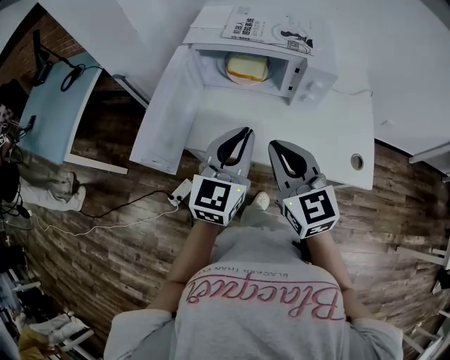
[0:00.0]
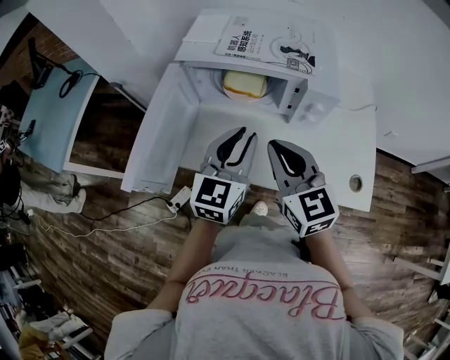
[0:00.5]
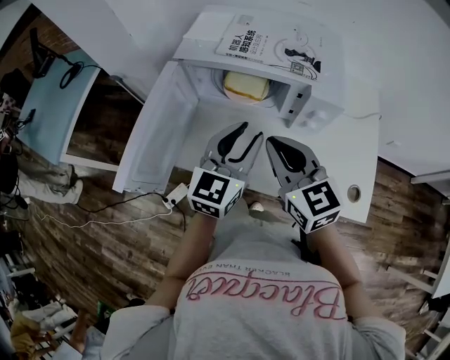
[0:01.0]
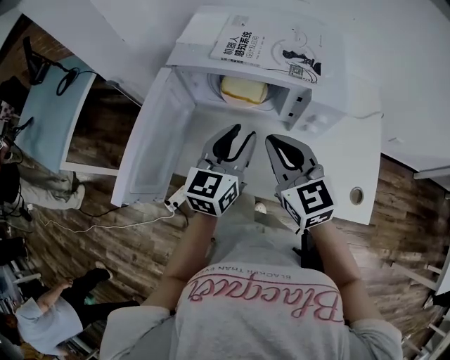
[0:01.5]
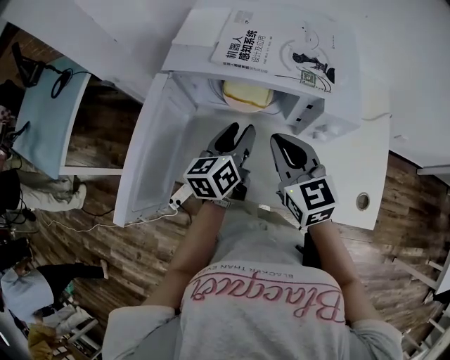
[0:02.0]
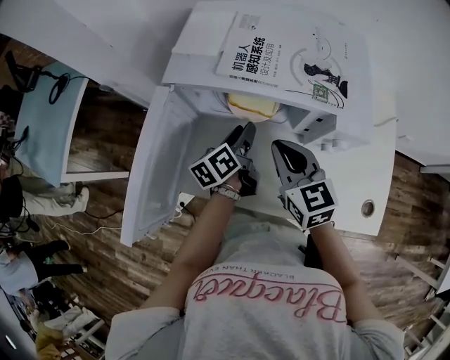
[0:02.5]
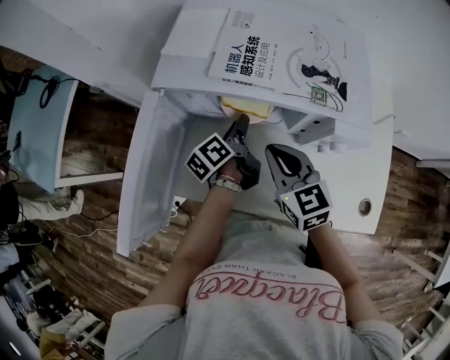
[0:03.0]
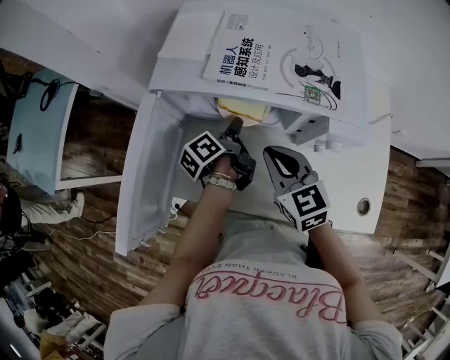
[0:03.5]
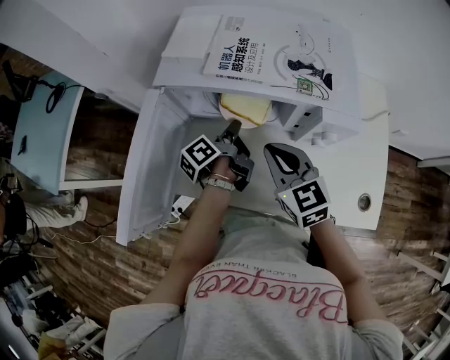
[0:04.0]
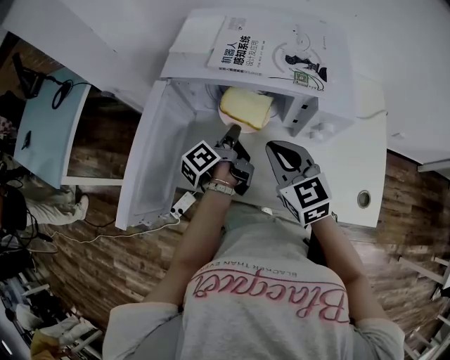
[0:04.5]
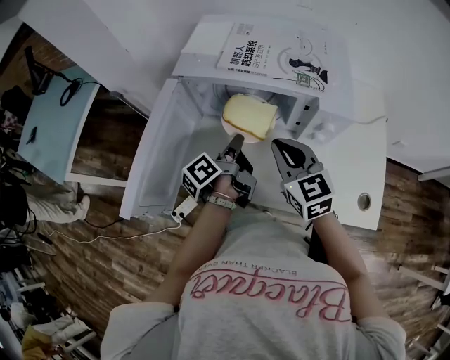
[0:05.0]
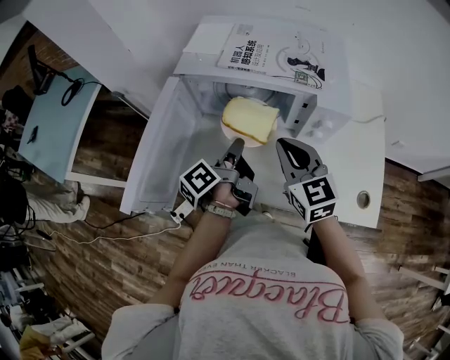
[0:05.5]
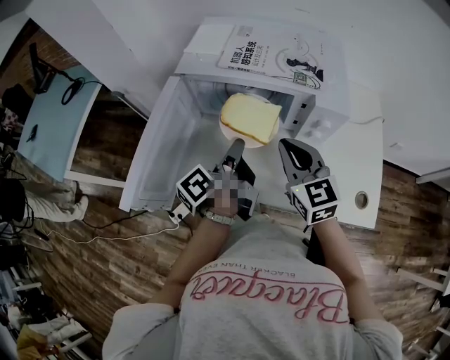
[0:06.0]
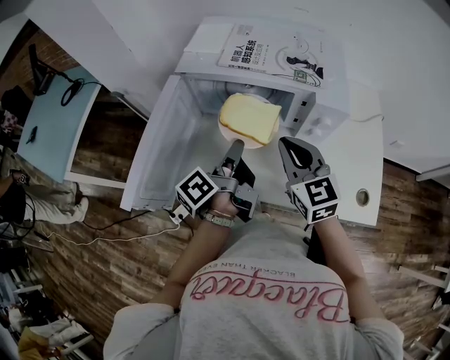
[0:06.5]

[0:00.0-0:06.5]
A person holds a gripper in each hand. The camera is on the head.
0:00.0 to 0:02.0: The right gripper heads forward, covering about 20 cm. Meanwhile the left gripper goes some 25 cm forward and downward, rotates roughly 40 degrees, and opens its fingers.
0:02.0 to 0:04.5: The left gripper moves downward, roughly 5 cm, twists about 50 degrees counterclockwise, seen from behind, and closes.
0:04.5 to 0:06.5: The left gripper travels upward and backward by approximately 15 cm.

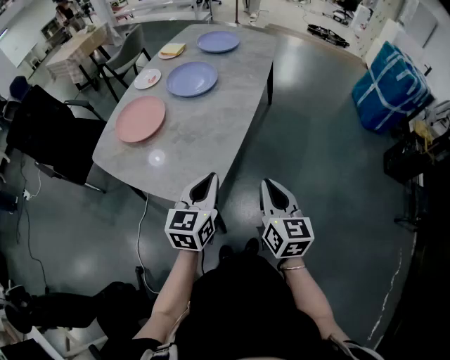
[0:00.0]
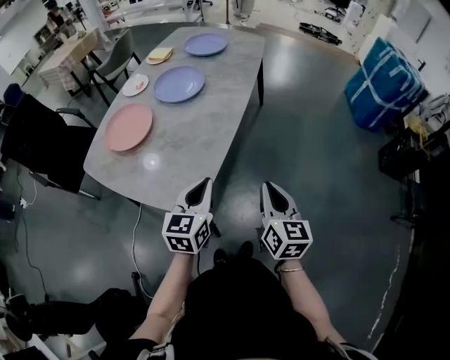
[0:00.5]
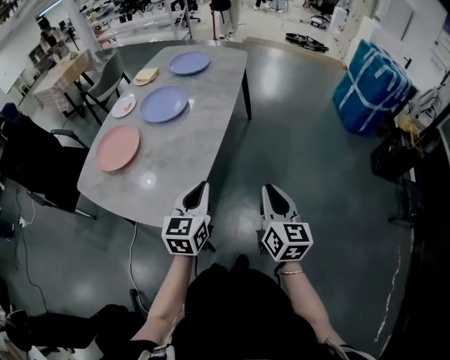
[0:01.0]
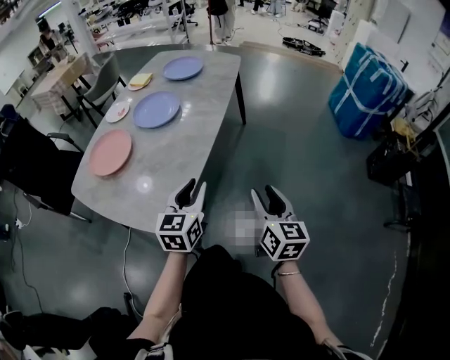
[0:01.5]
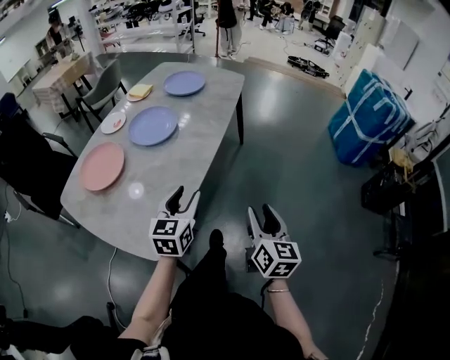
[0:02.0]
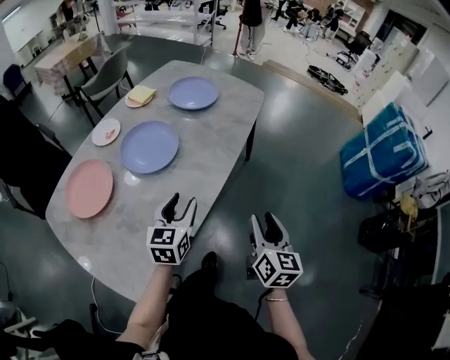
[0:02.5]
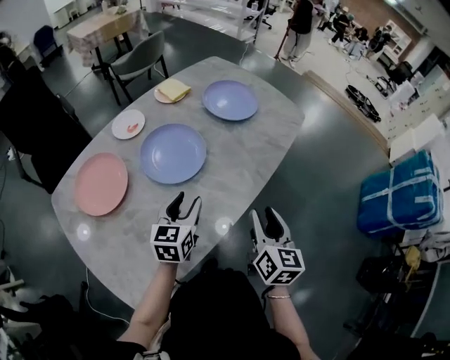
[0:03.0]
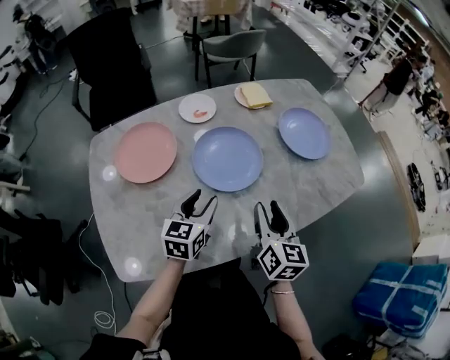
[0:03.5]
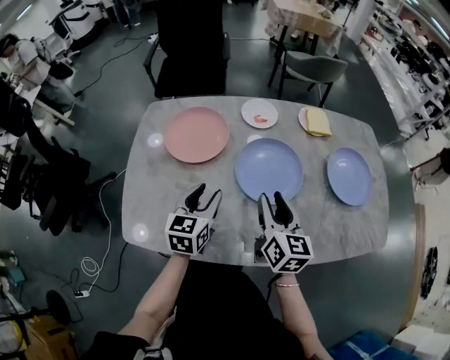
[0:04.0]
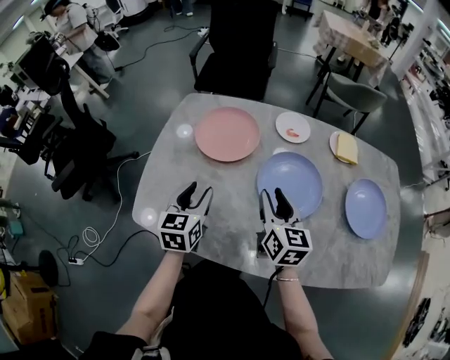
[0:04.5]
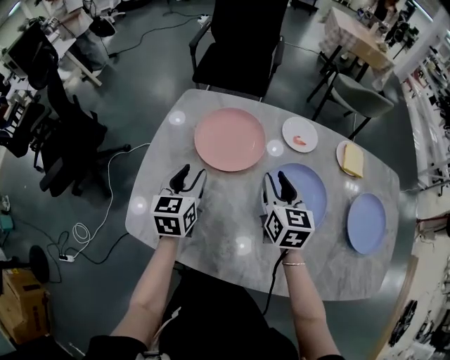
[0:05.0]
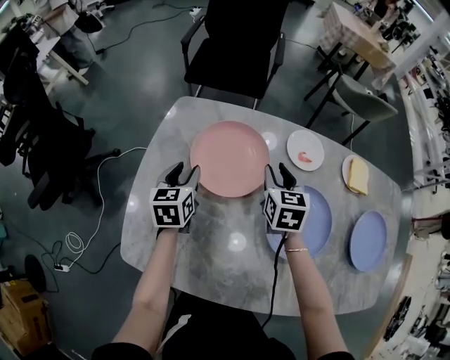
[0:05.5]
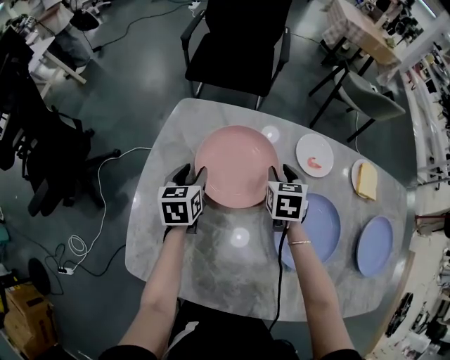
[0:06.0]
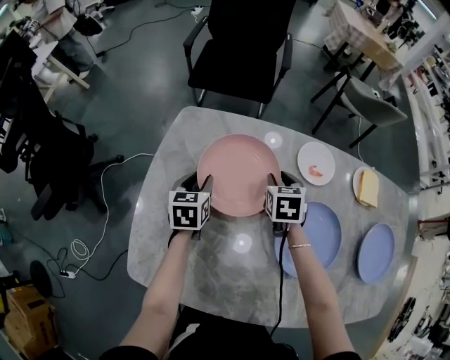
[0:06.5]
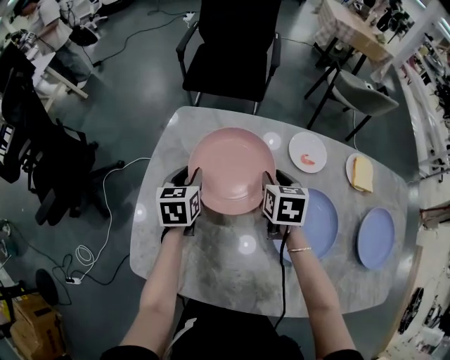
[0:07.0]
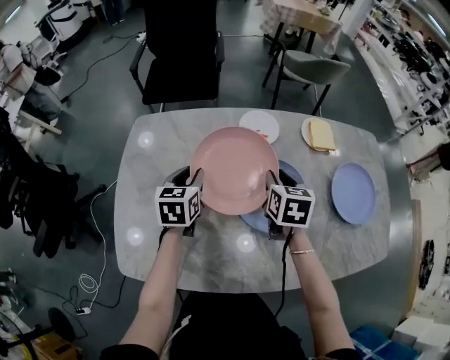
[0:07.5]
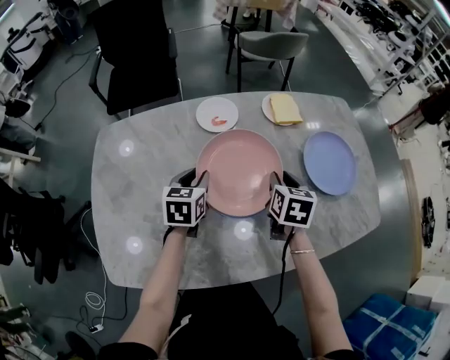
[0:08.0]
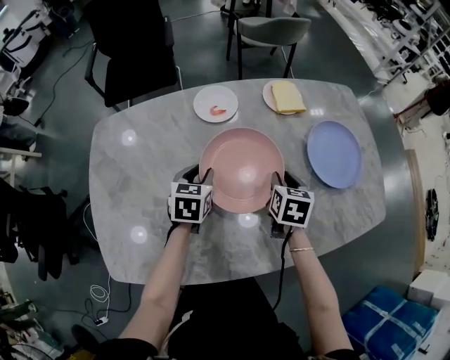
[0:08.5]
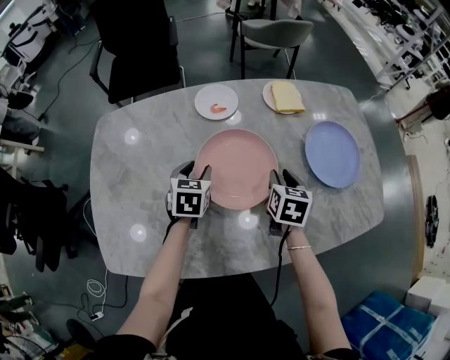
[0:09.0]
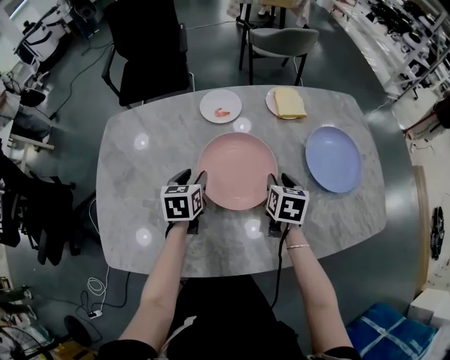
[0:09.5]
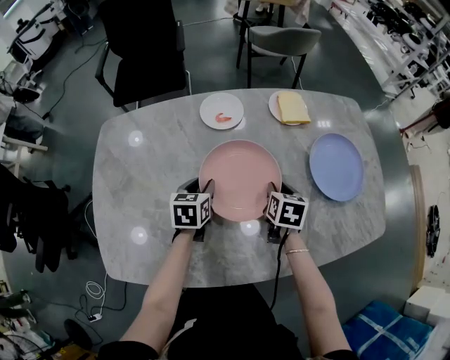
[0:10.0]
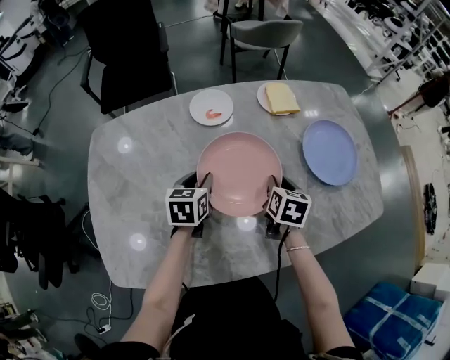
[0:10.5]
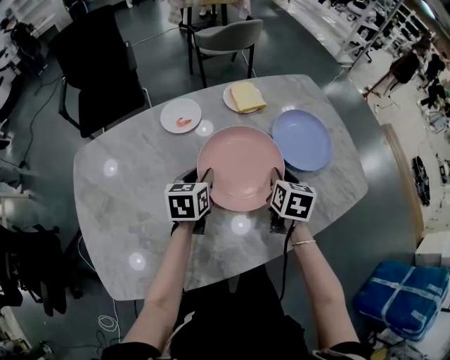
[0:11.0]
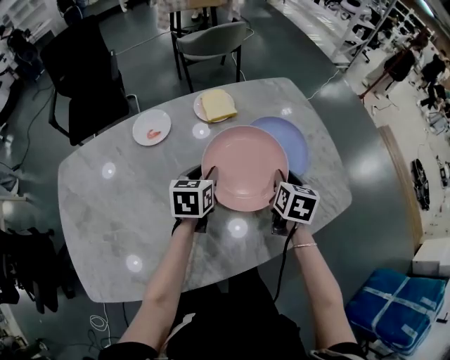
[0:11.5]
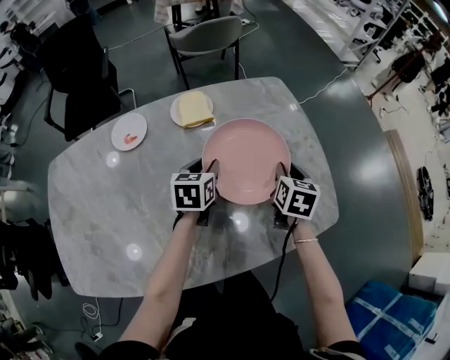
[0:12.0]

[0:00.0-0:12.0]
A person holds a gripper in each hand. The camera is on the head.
0:00.0 to 0:02.0: The right gripper is displaced to the right and forward by roughly 20 cm, and opens its fingers, while the left gripper travels forward and to the right by some 15 cm, and opens.
0:02.0 to 0:04.0: The right gripper shifts by approximately 50 cm, and rotates approximately 70 degrees; the left gripper moves roughly 30 cm, and rotates roughly 70 degrees.
0:04.0 to 0:06.0: The right gripper heads forward and downward, covering about 35 cm, and rotates about 40 degrees. Meanwhile the left gripper heads forward, to the left and downward, covering approximately 30 cm, and changes its angle by some 30 degrees.
0:06.0 to 0:08.0: The right gripper ends up roughly 30 cm from where it was, and swivels about 30 degrees; the left gripper changes place by approximately 30 cm, and rotates some 30 degrees.
0:08.0 to 0:10.0: The grippers both shift downward by some 5 cm.
0:10.0 to 0:12.0: The left gripper is displaced to the right and forward by approximately 35 cm. The right gripper heads to the right, covering some 30 cm.

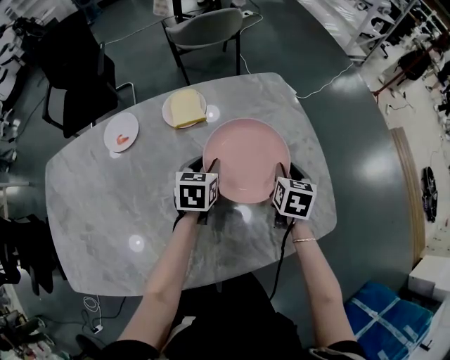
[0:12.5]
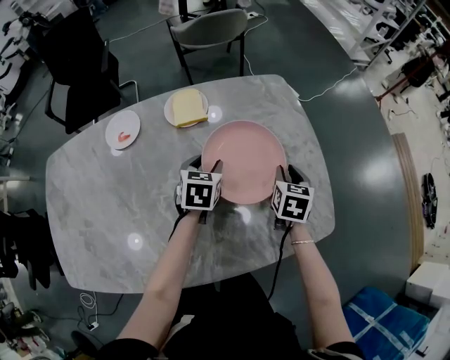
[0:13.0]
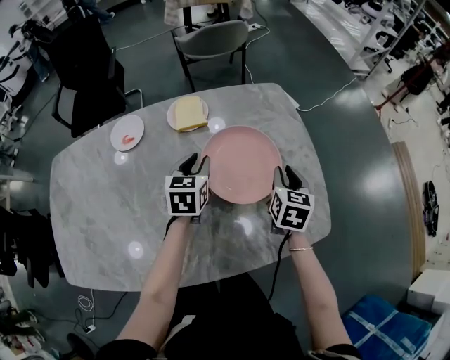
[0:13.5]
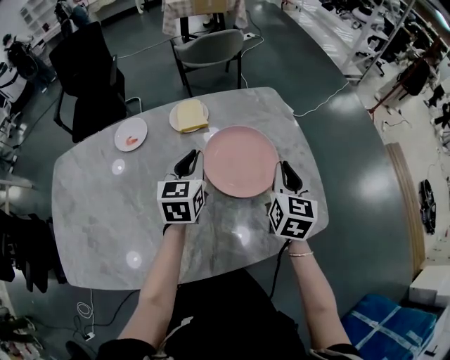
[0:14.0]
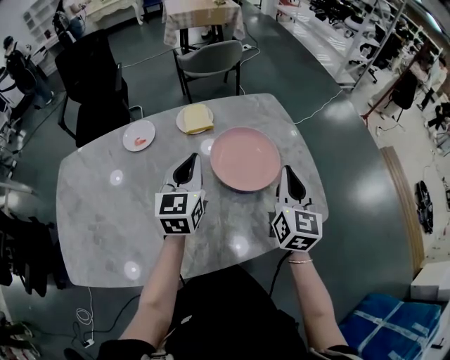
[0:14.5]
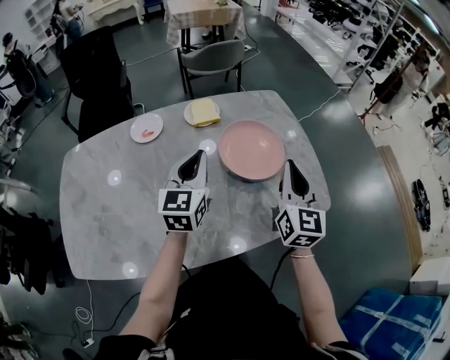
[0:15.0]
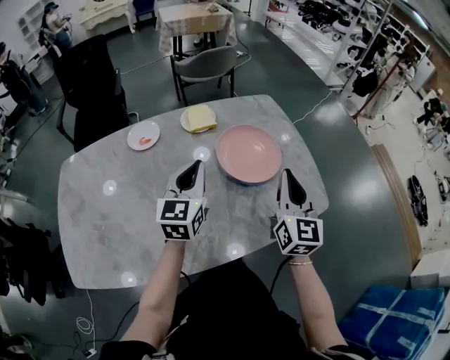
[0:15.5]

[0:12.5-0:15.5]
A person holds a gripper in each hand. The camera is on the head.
0:12.5 to 0:14.0: The grippers both shift upward by roughly 10 cm. The left gripper swivels some 20 degrees, and closes. The right gripper rotates approximately 20 degrees.
0:14.0 to 0:15.5: The grippers both shift backward and upward by about 15 cm. The right gripper changes its angle by about 20 degrees.

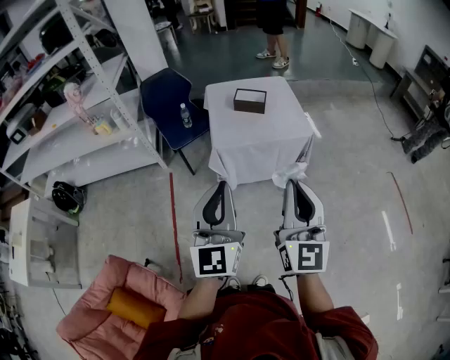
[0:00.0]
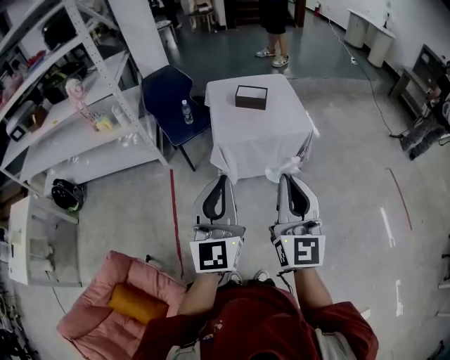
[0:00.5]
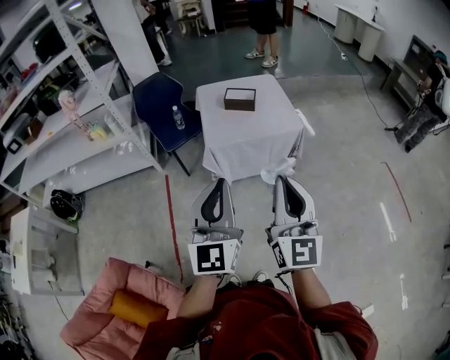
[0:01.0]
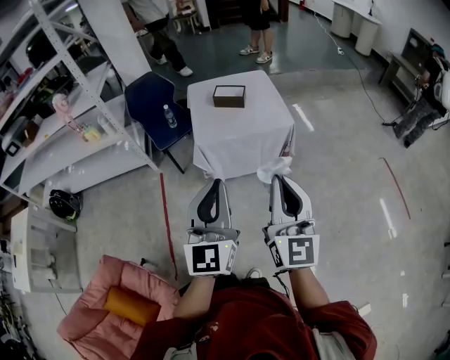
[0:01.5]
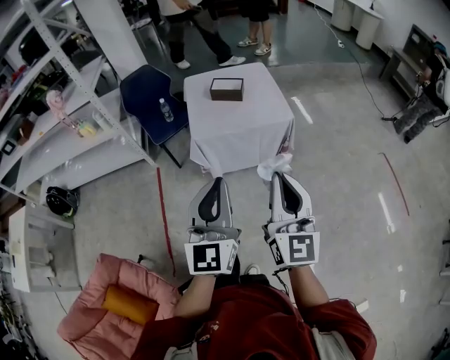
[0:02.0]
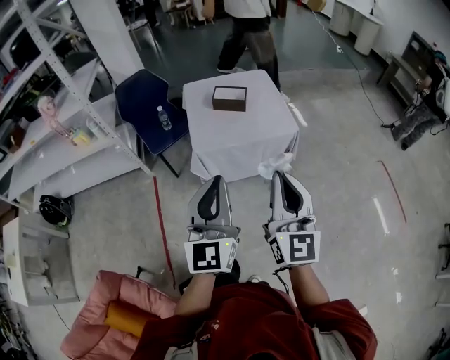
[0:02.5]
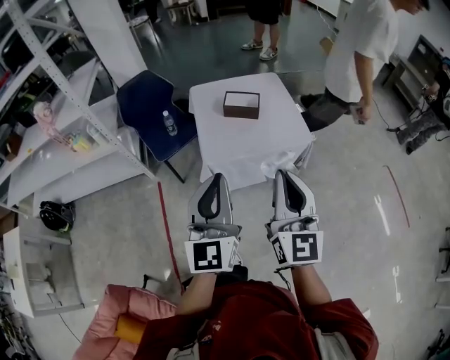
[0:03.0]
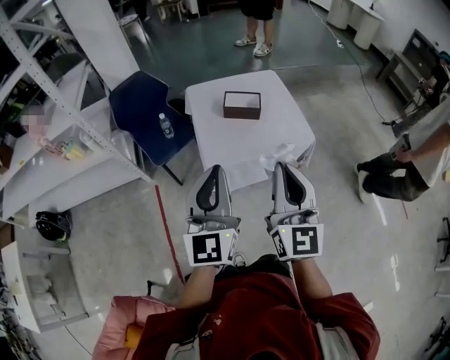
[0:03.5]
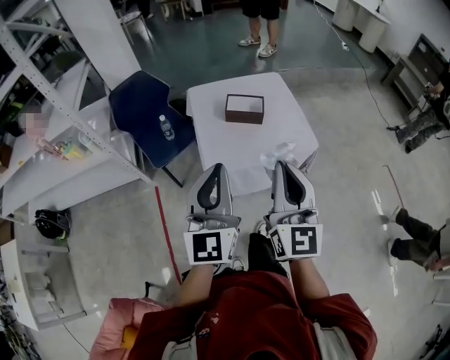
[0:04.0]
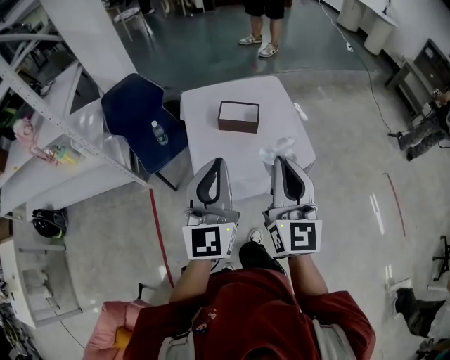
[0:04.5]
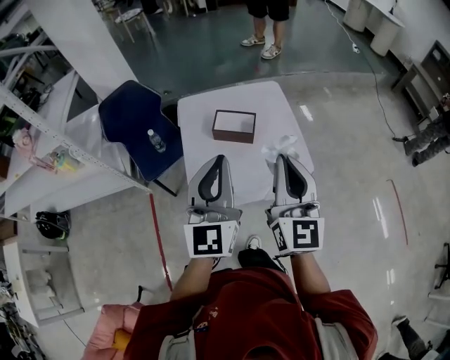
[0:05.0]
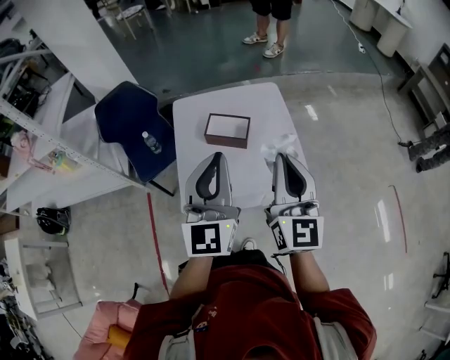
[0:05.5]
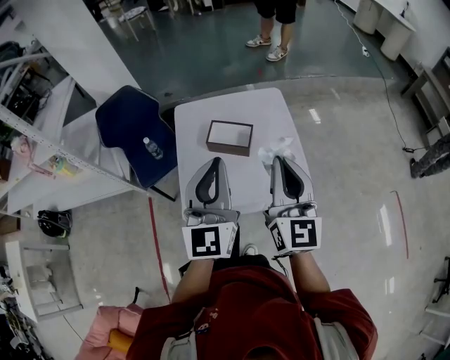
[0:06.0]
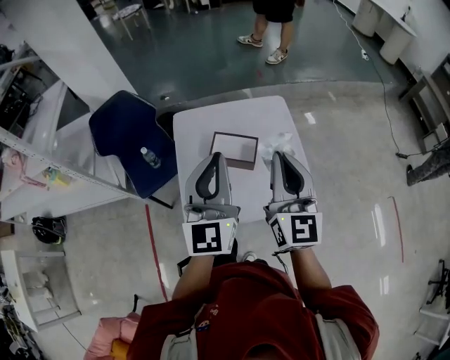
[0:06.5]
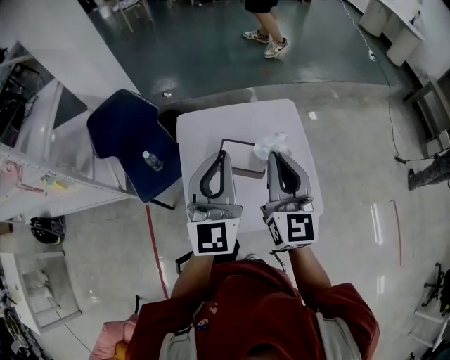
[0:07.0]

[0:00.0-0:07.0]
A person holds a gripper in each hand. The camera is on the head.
0:00.0 to 0:02.0: The two grippers go about 10 cm to the right.
0:02.0 to 0:03.5: Both grippers travel together forward and to the left, some 30 cm.
0:03.5 to 0:05.0: The two grippers go roughly 25 cm forward and to the right.
0:05.0 to 0:07.0: Both grippers travel together forward, approximately 25 cm.
